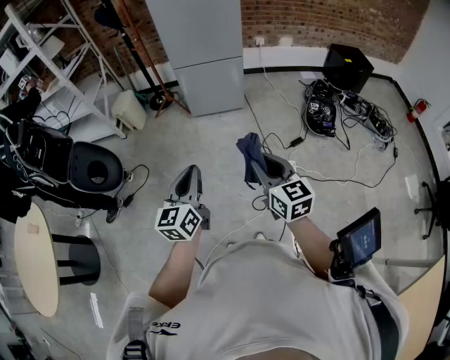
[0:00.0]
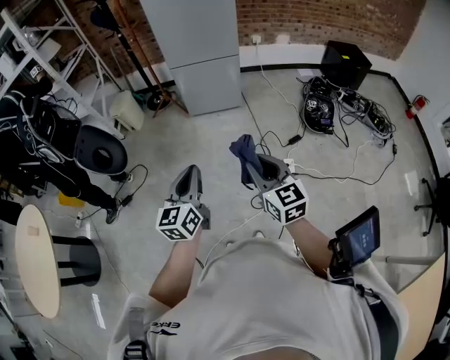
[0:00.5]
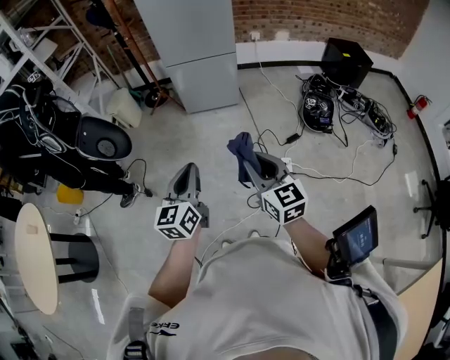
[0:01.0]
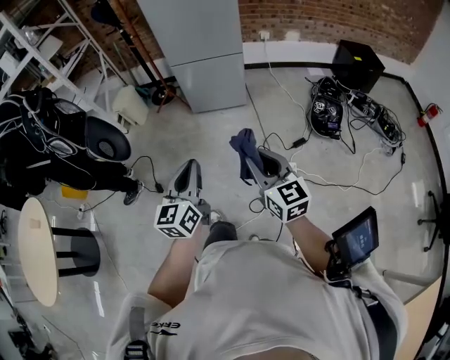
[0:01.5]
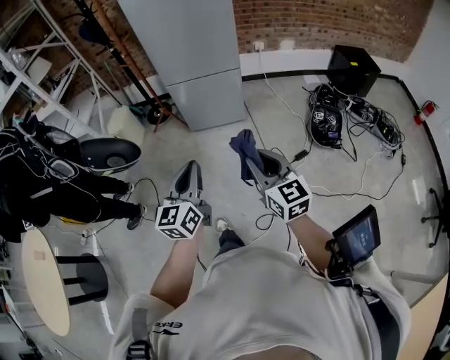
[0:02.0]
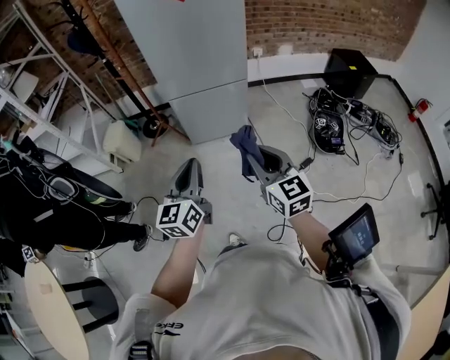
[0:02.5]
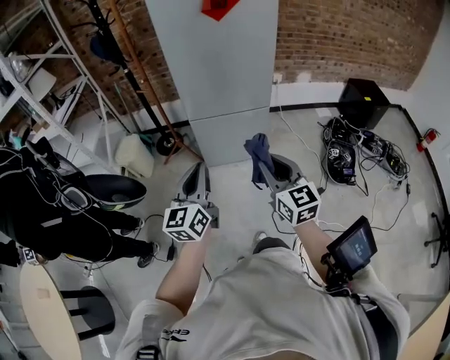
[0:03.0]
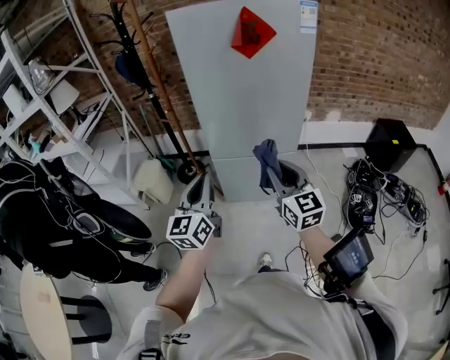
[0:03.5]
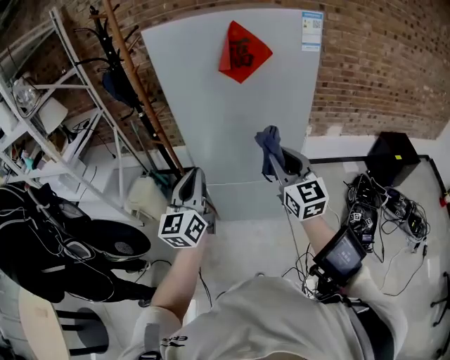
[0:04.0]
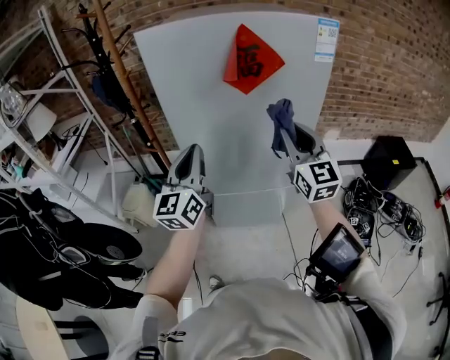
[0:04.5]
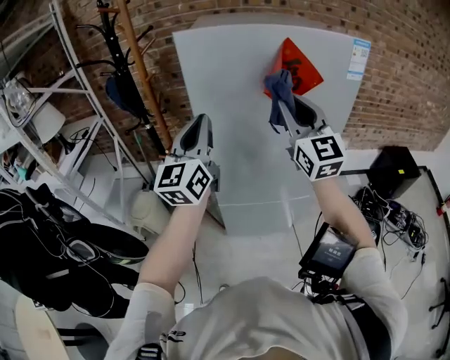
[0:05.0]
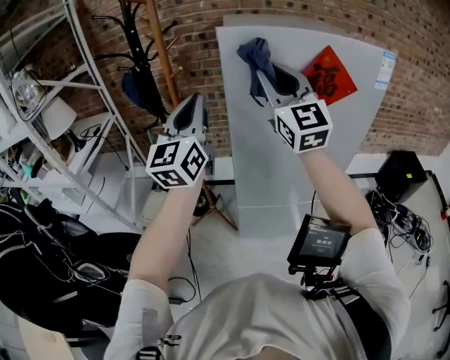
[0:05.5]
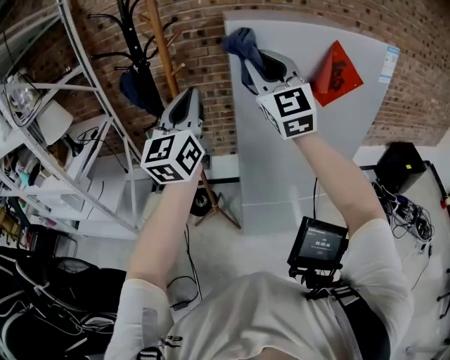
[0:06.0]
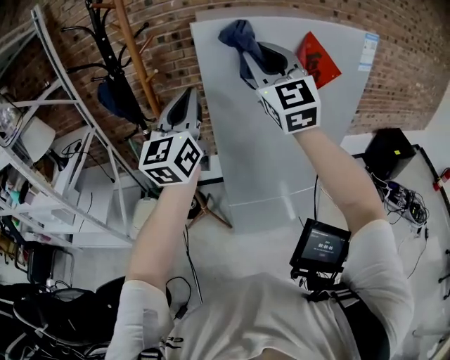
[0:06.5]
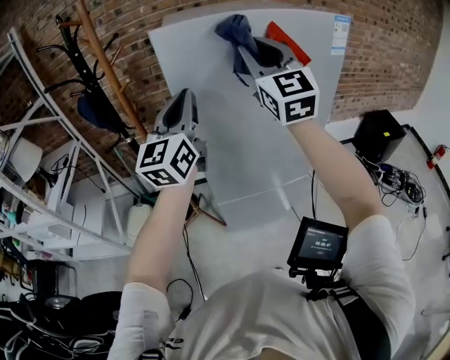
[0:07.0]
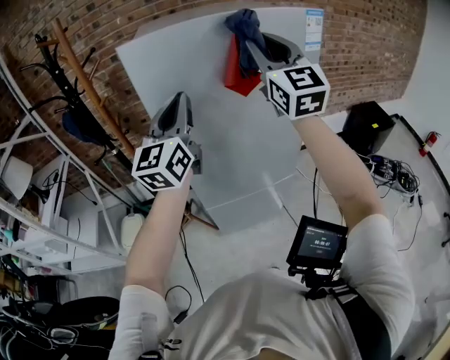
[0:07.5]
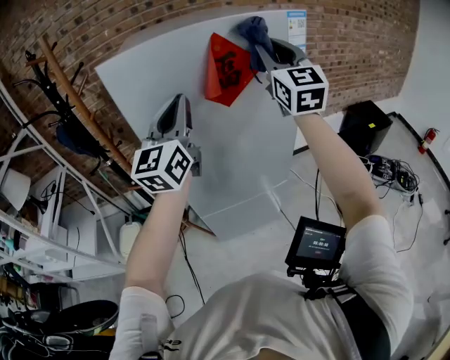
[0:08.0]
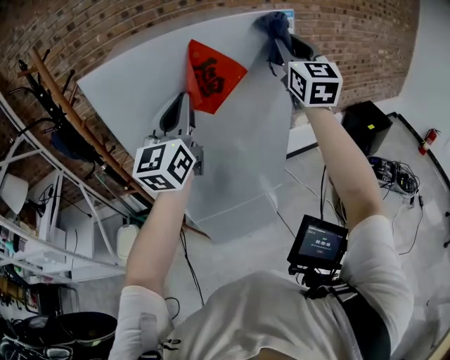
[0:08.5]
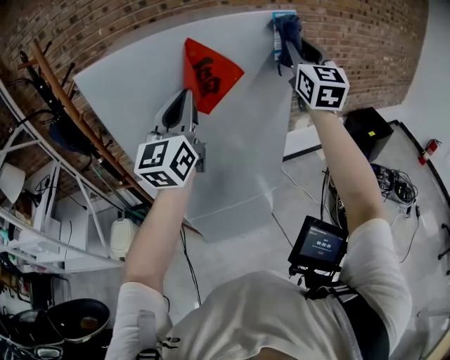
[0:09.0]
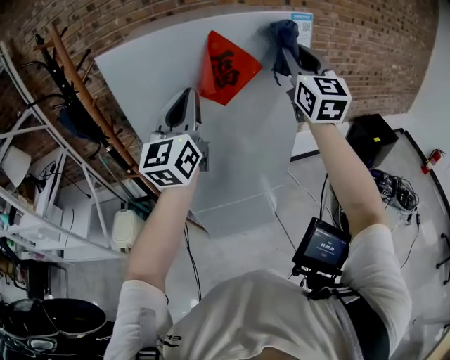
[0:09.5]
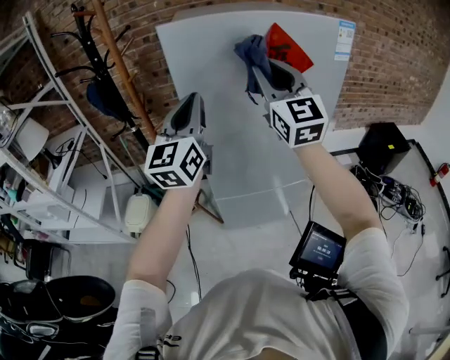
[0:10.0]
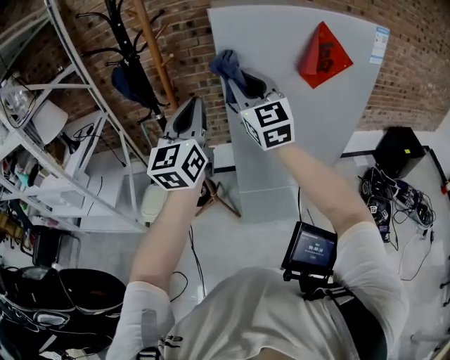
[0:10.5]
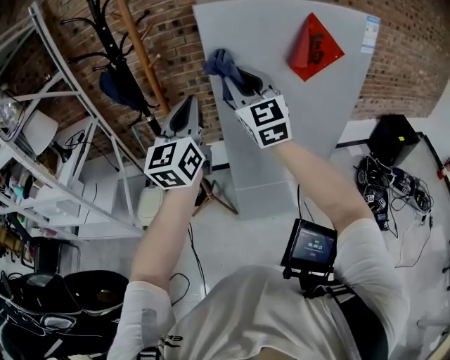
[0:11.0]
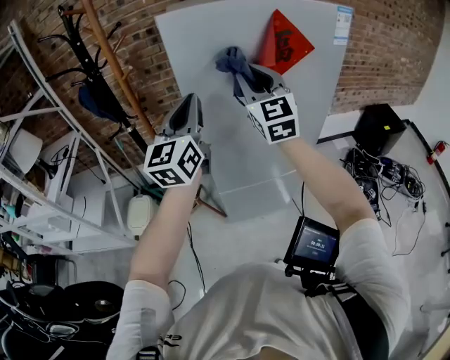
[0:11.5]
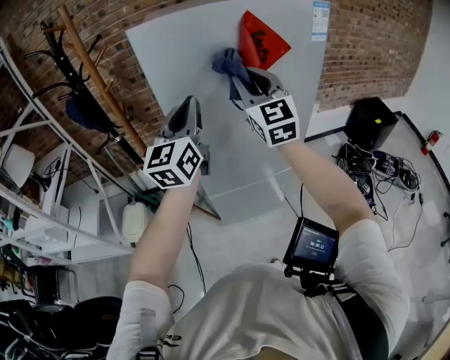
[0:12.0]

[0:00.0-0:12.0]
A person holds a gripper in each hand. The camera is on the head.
0:00.0 to 0:02.0: The two grippers go approximately 20 cm forward.
0:02.0 to 0:04.0: The two grippers travel together, forward, some 60 cm.
0:04.0 to 0:06.0: The right gripper is displaced to the left, upward and forward by some 40 cm, and swivels roughly 30 degrees. Meanwhile the left gripper shifts approximately 35 cm forward, to the left and upward.
0:06.0 to 0:08.0: The grippers both shift to the right by roughly 25 cm. The right gripper rotates about 20 degrees.
0:08.0 to 0:10.0: The left gripper shifts some 10 cm to the left and backward, while the right gripper goes some 15 cm to the left and backward.
0:10.0 to 0:12.0: The right gripper heads downward, covering approximately 5 cm, and goes to the left and returns, about 15 cm each way, while the left gripper goes to the left and returns, about 10 cm each way.

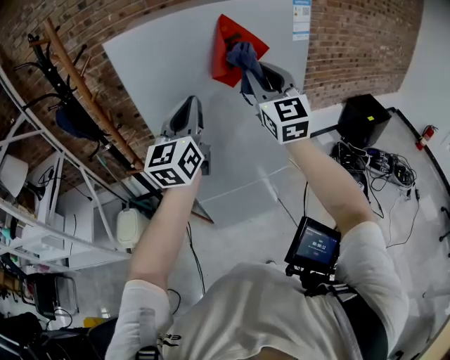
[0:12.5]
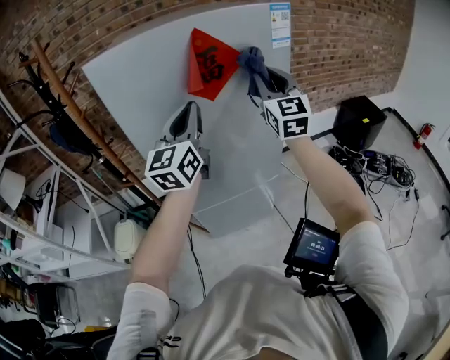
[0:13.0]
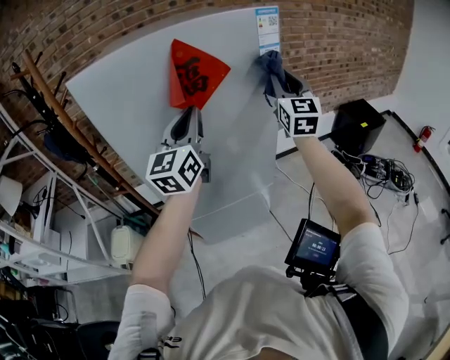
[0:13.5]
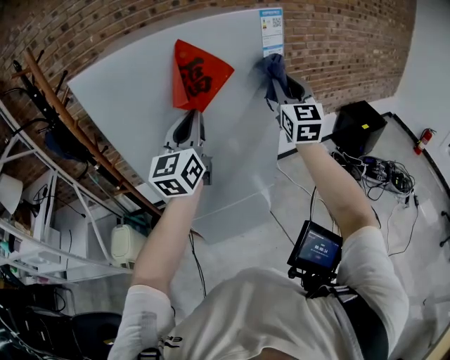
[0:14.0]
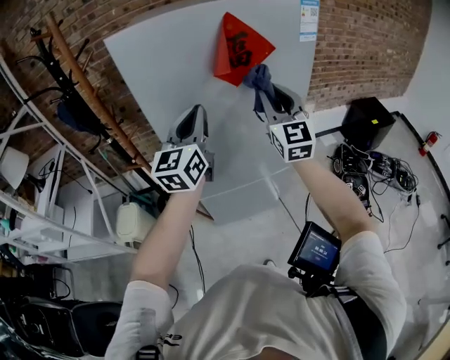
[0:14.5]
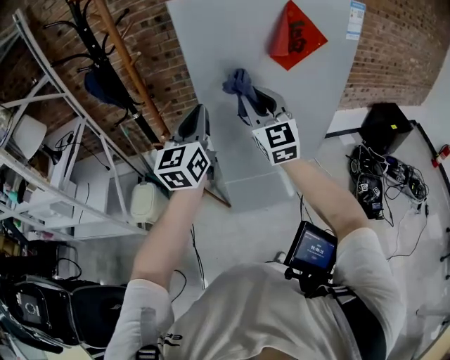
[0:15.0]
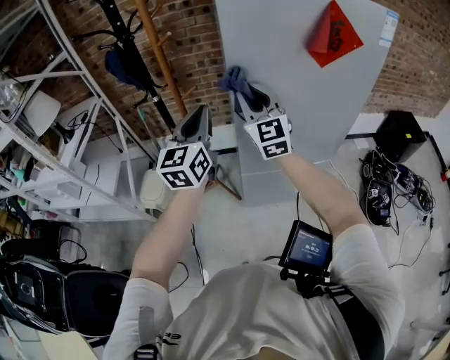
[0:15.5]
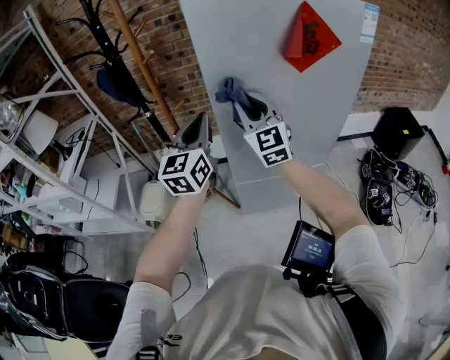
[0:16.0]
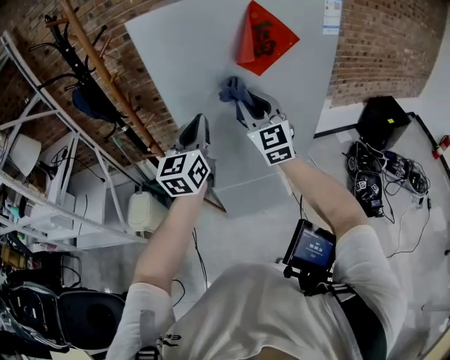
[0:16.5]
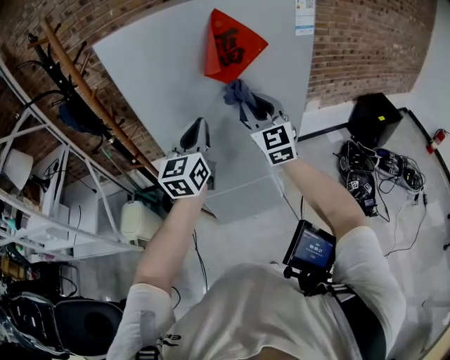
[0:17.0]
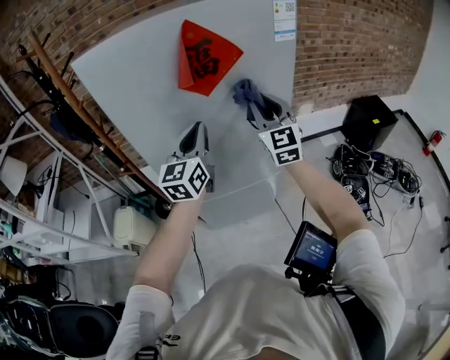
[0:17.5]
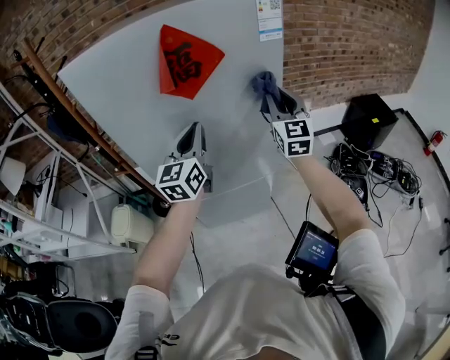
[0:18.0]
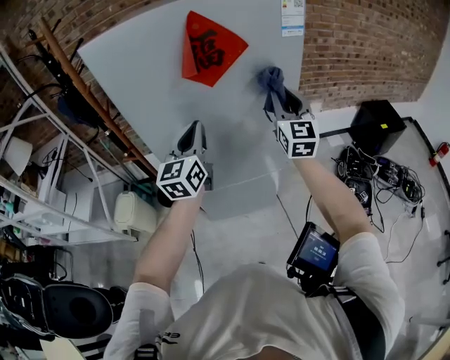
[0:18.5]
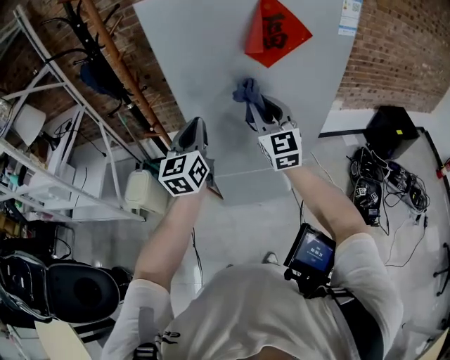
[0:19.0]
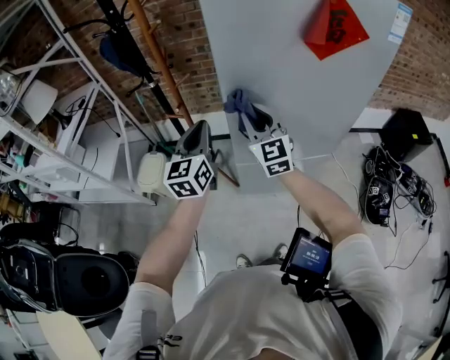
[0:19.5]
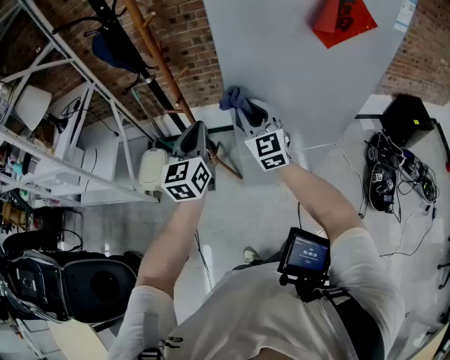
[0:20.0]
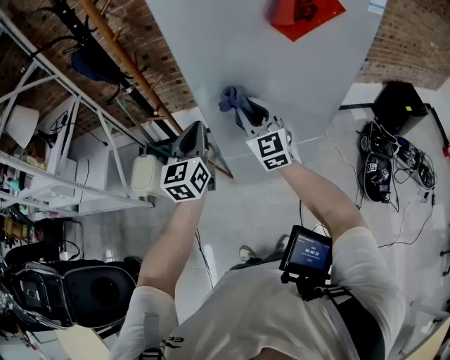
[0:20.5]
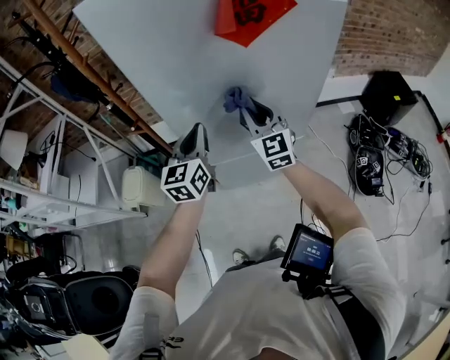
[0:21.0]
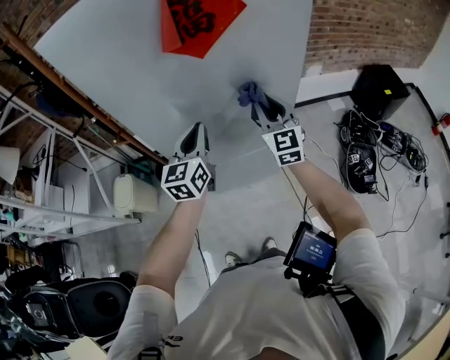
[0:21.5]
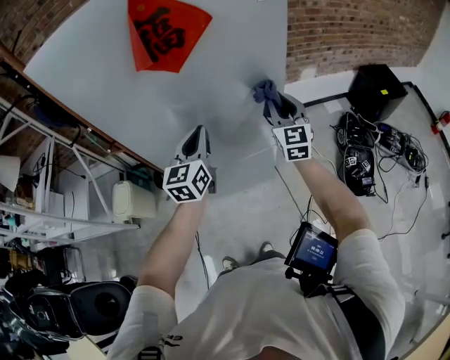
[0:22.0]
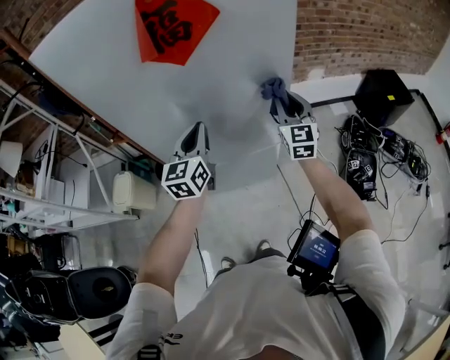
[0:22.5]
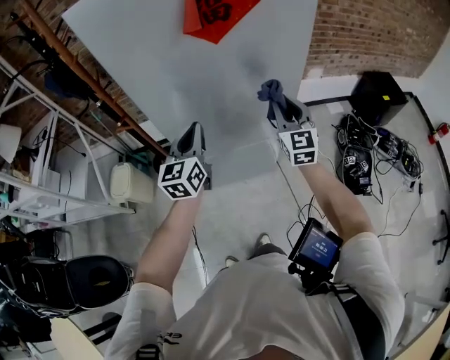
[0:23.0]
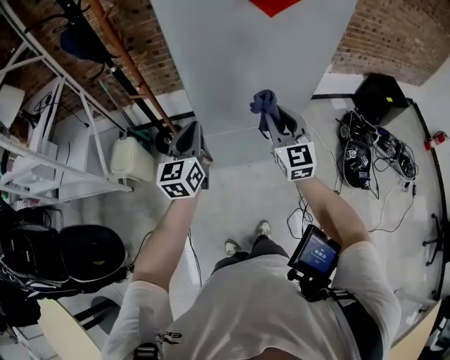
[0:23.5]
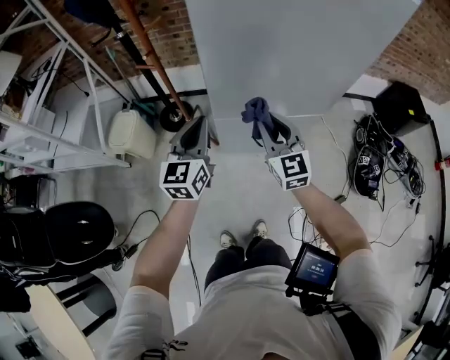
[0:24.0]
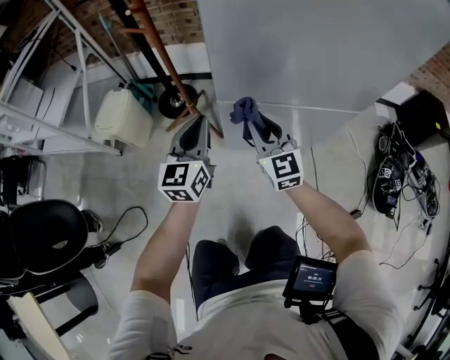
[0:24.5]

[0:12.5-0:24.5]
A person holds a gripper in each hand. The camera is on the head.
0:12.5 to 0:14.5: The right gripper is displaced downward by some 5 cm, and goes to the right and returns, roughly 15 cm each way. Meanwhile the left gripper goes to the right and returns, roughly 10 cm each way.
0:14.5 to 0:16.5: The right gripper travels to the left and downward by roughly 15 cm; the left gripper shifts some 5 cm downward, and travels to the left and back again, approximately 20 cm each way.
0:16.5 to 0:18.5: The right gripper is displaced to the right by some 20 cm; the left gripper moves to the right, approximately 10 cm.
0:18.5 to 0:20.5: The right gripper goes roughly 35 cm to the left and downward, and swivels roughly 20 degrees; the left gripper shifts some 20 cm to the left and downward.
0:20.5 to 0:22.5: The right gripper shifts about 35 cm to the right. Meanwhile the left gripper moves to the right, about 25 cm.
0:22.5 to 0:24.5: The left gripper heads downward and to the left, covering some 40 cm. The right gripper is displaced to the left and downward by approximately 50 cm, and turns by approximately 30 degrees.

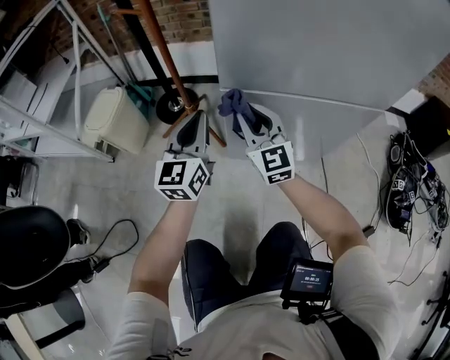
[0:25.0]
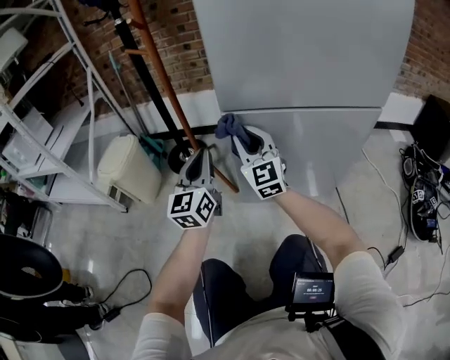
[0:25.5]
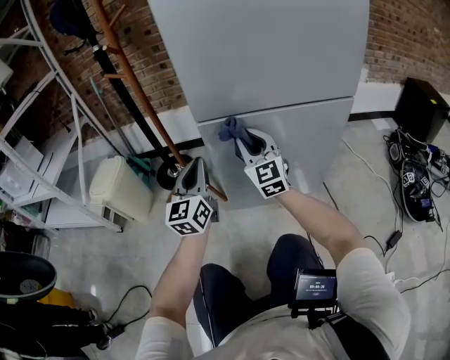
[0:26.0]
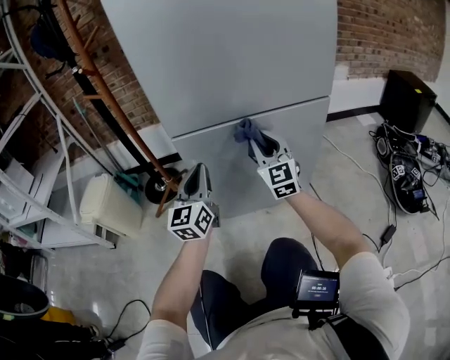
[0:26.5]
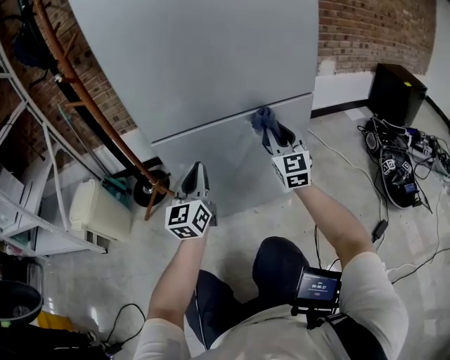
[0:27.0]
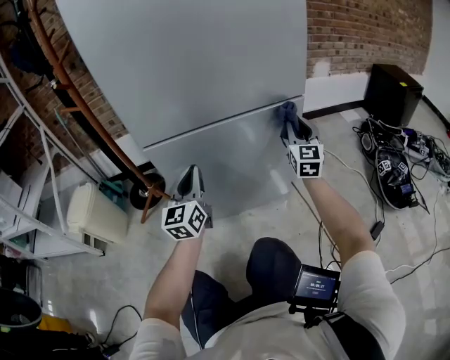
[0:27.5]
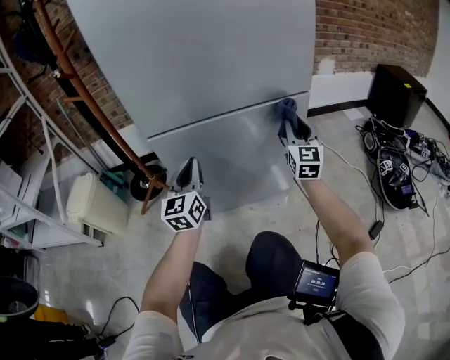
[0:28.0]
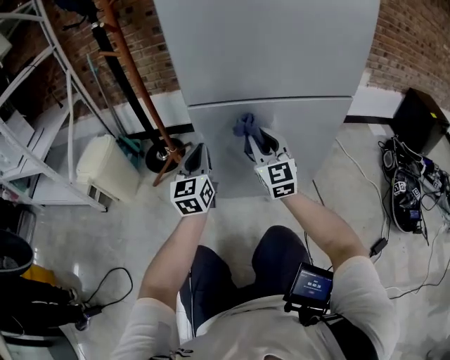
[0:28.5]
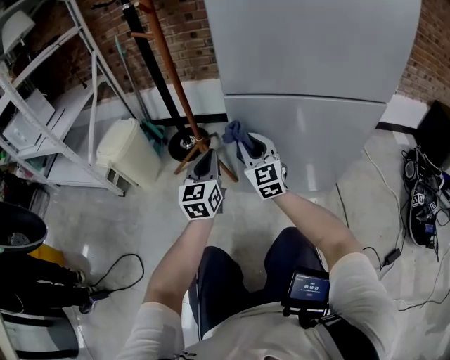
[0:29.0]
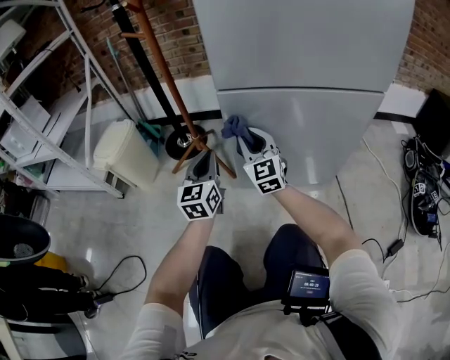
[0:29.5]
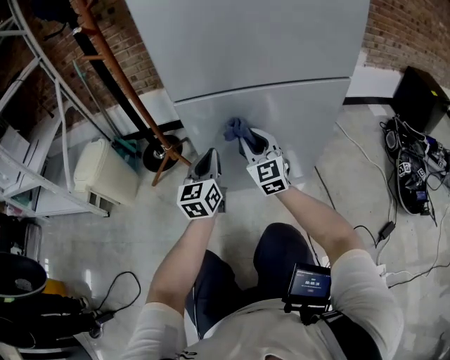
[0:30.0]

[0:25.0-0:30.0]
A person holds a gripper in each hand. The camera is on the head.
0:25.0 to 0:27.5: The left gripper moves approximately 20 cm, while the right gripper moves about 40 cm, and changes its angle by about 40 degrees.
0:27.5 to 0:30.0: The left gripper is displaced downward by about 10 cm. The right gripper moves some 30 cm, and rotates some 30 degrees.
